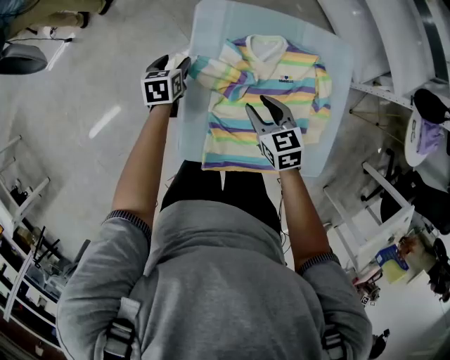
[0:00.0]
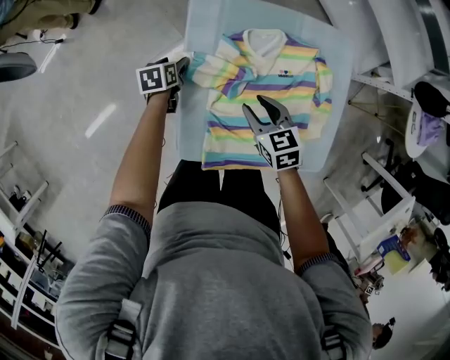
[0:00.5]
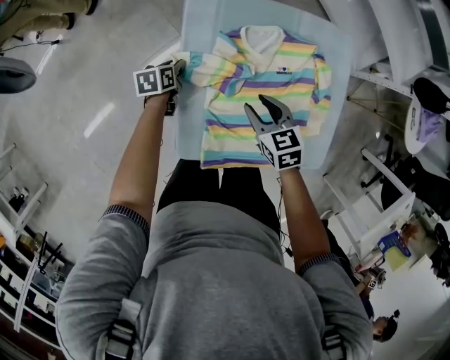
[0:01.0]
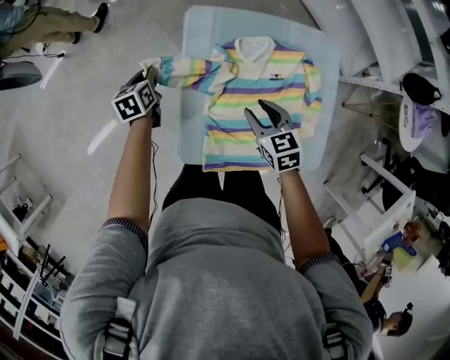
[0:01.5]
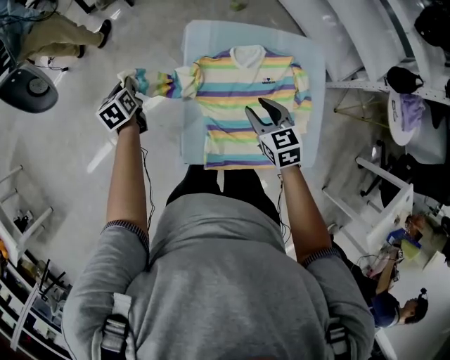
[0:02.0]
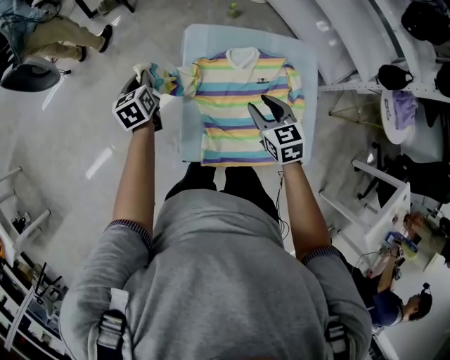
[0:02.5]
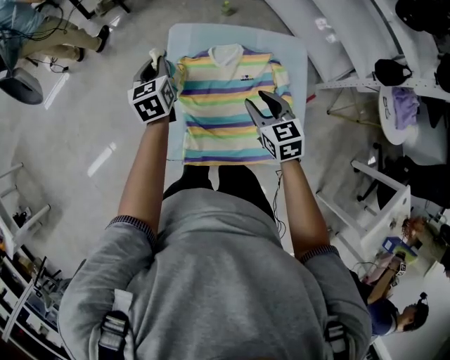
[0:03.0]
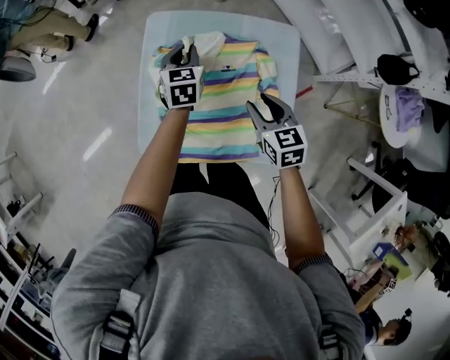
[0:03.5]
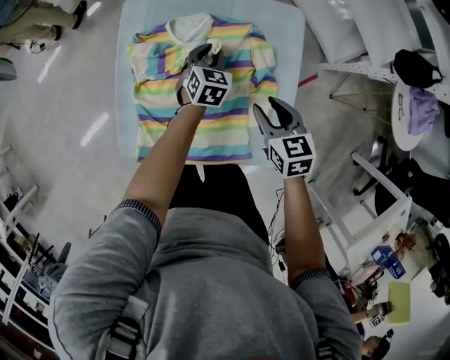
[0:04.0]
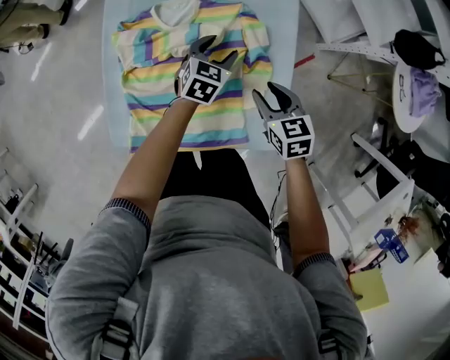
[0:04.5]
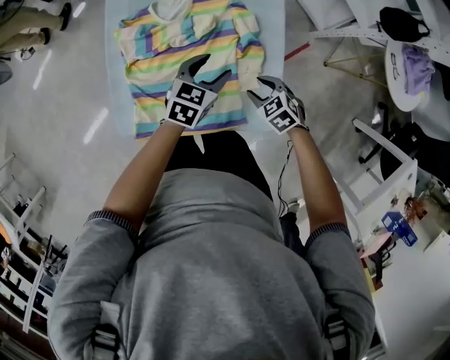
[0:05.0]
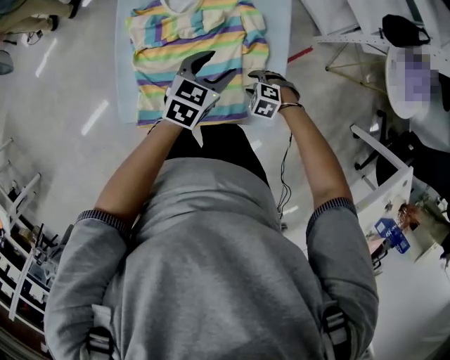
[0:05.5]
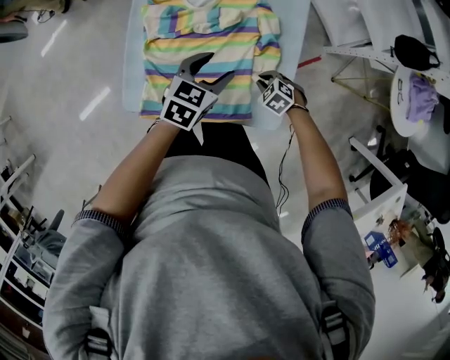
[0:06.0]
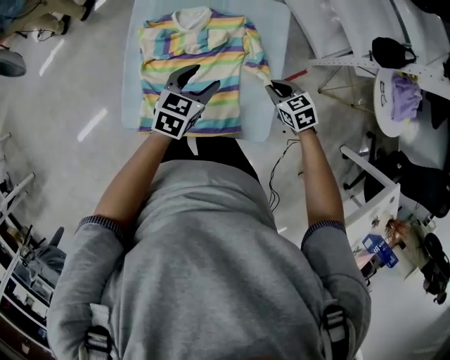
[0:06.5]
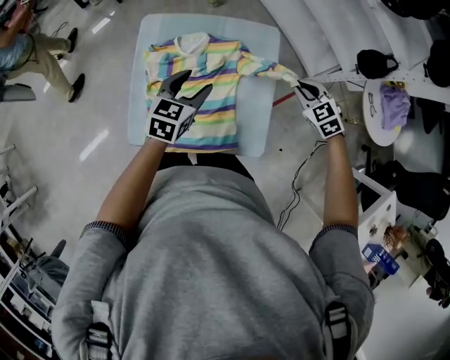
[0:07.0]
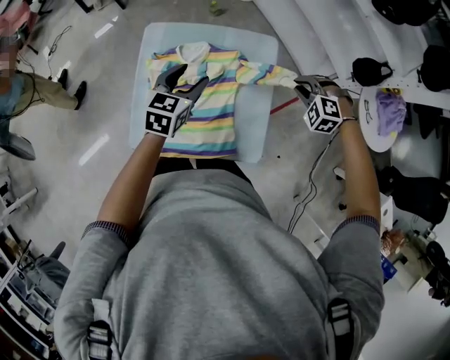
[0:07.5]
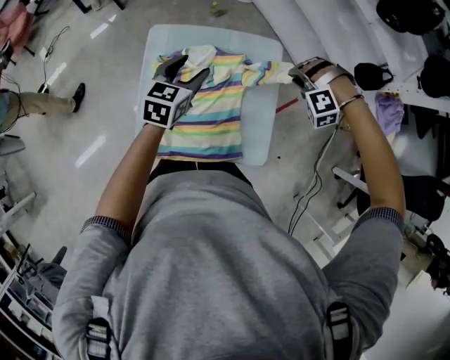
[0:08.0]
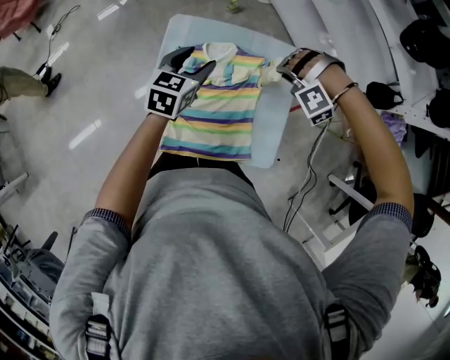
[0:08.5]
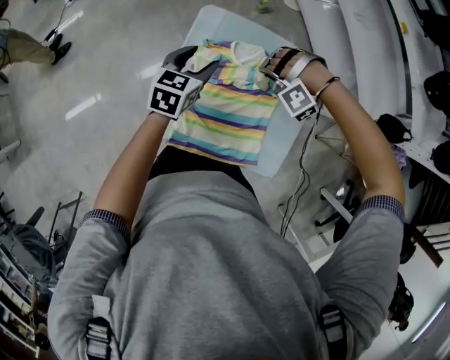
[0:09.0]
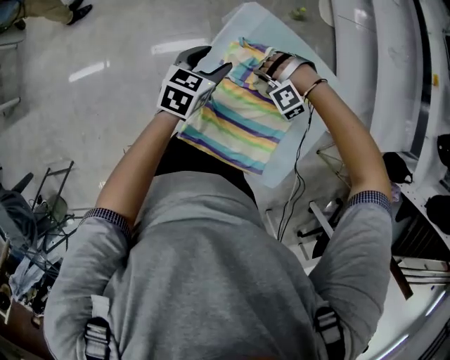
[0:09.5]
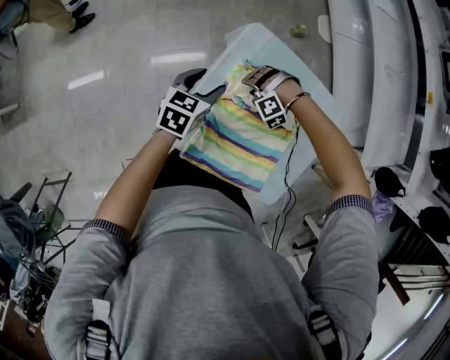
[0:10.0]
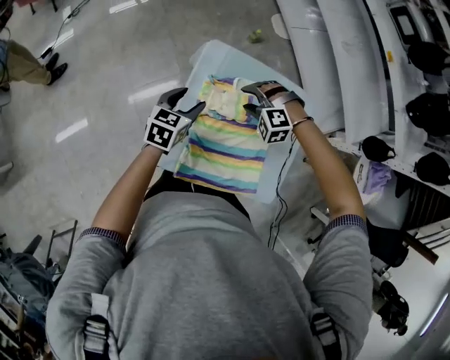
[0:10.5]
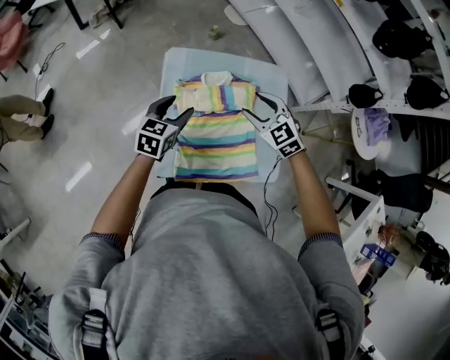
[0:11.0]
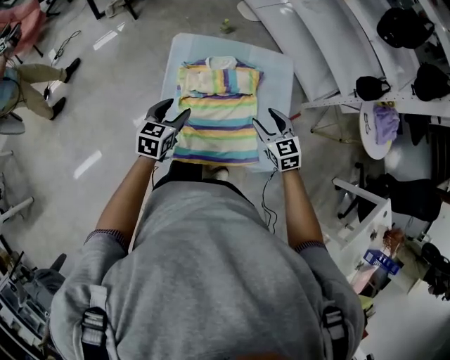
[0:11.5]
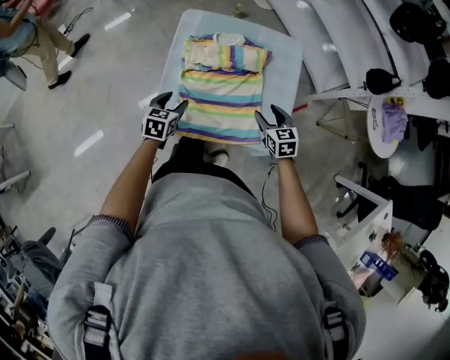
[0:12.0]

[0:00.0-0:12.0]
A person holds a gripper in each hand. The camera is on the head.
0:00.0 to 0:02.0: The right gripper travels upward by approximately 10 cm; the left gripper travels to the left and upward by approximately 20 cm, turns by roughly 20 degrees, and closes up.
0:02.0 to 0:04.0: The left gripper travels to the right by roughly 50 cm, and swivels some 40 degrees, while the right gripper shifts about 25 cm to the right.
0:04.0 to 0:06.0: The right gripper goes approximately 15 cm downward, changes its angle by some 50 degrees, and closes up; the left gripper moves about 20 cm, changes its angle by approximately 20 degrees, and opens up.
0:06.0 to 0:08.0: The right gripper is displaced upward and forward by roughly 35 cm, and rolls counterclockwise, seen from behind, by roughly 60 degrees, while the left gripper goes some 20 cm upward, forward and to the left.
0:08.0 to 0:10.0: The left gripper shifts by approximately 30 cm, and turns by about 20 degrees. The right gripper ends up roughly 50 cm from where it was, changes its angle by roughly 30 degrees, and opens.
0:10.0 to 0:12.0: The left gripper ends up about 20 cm from where it was, while the right gripper changes place by some 35 cm, and rotates around the line of its fingers by some 120 degrees, clockwise from behind.

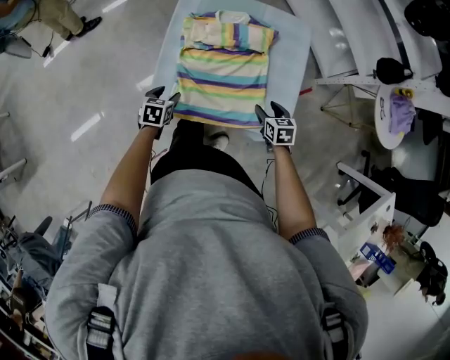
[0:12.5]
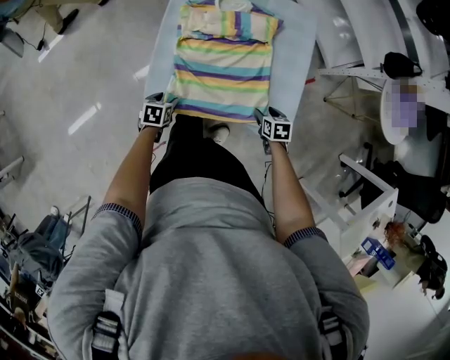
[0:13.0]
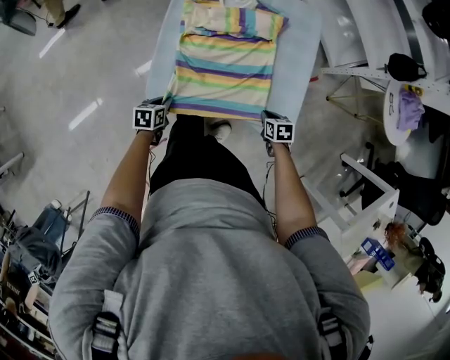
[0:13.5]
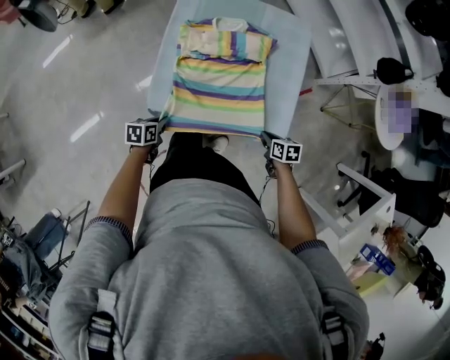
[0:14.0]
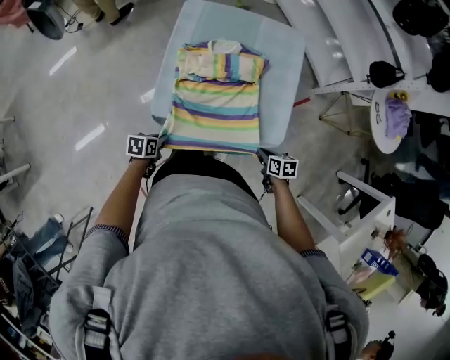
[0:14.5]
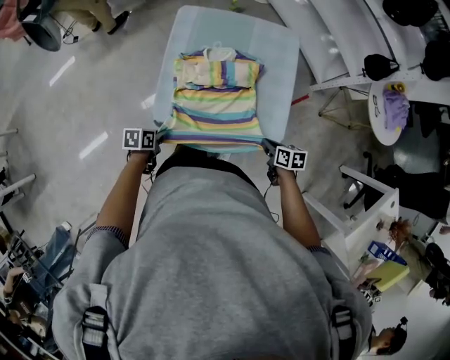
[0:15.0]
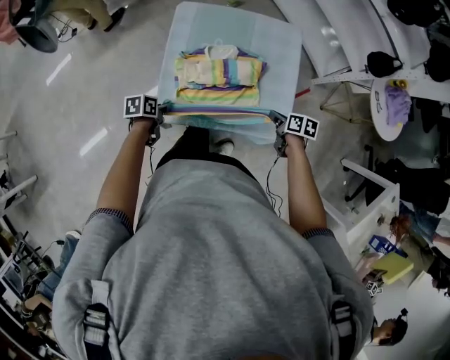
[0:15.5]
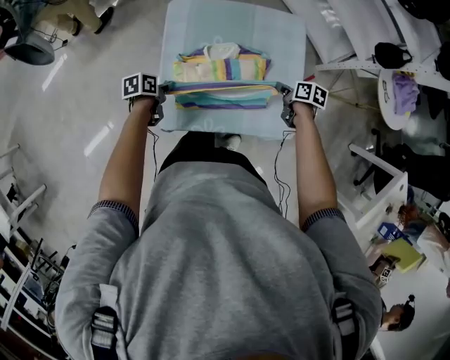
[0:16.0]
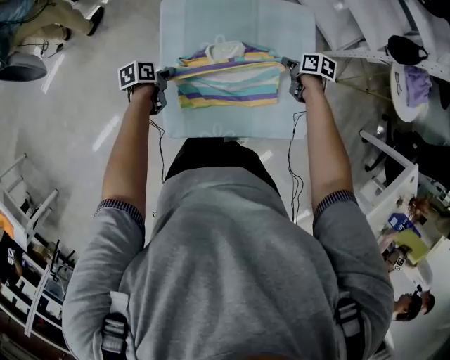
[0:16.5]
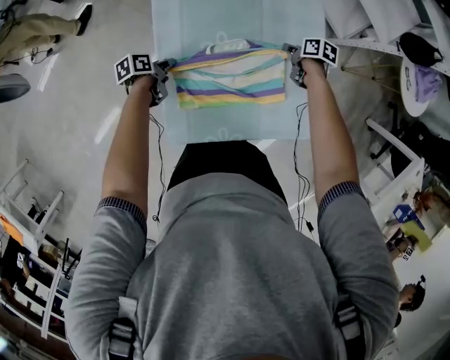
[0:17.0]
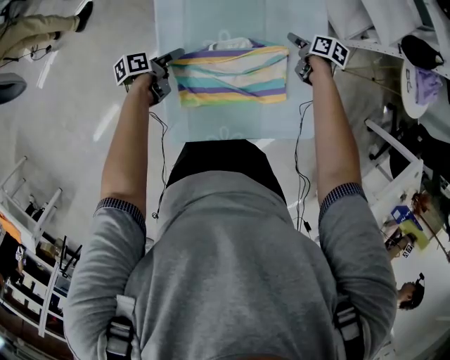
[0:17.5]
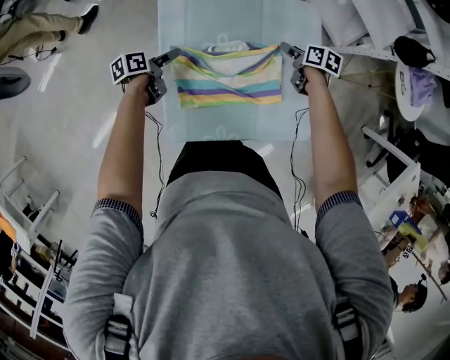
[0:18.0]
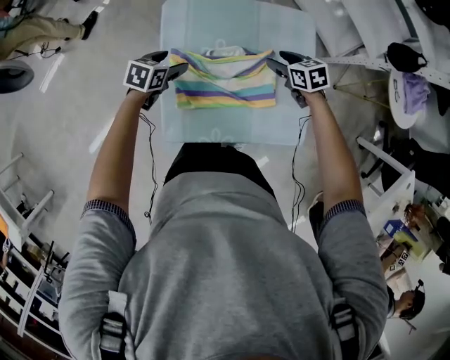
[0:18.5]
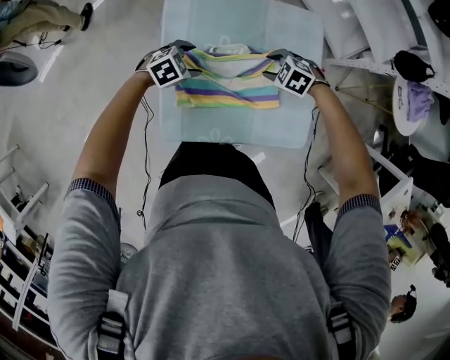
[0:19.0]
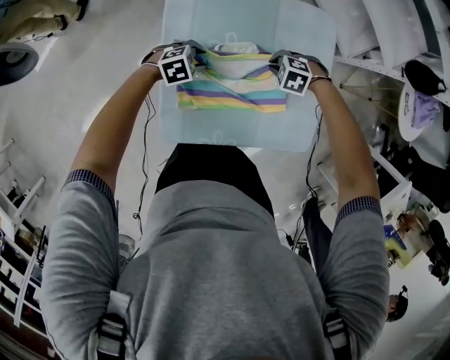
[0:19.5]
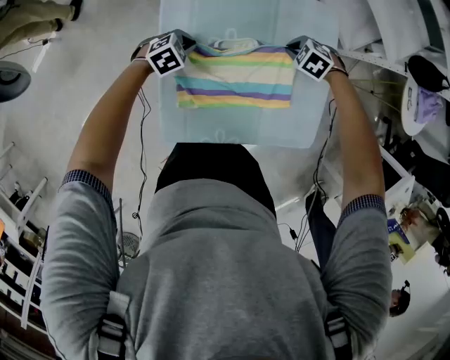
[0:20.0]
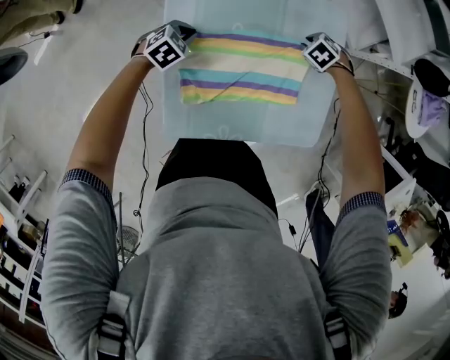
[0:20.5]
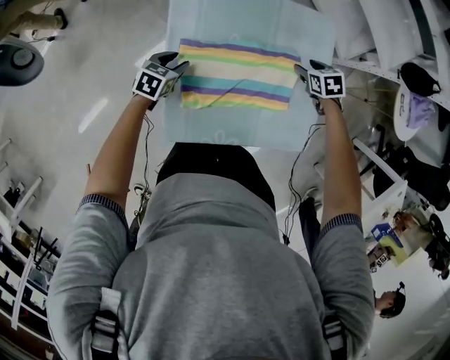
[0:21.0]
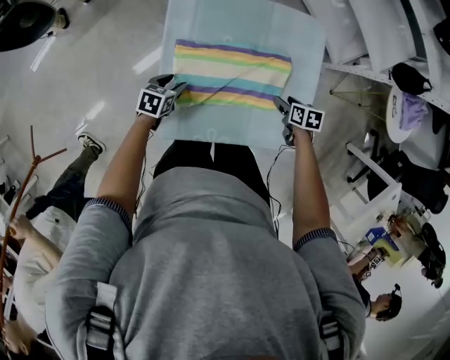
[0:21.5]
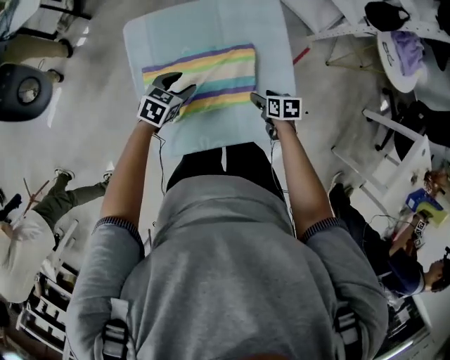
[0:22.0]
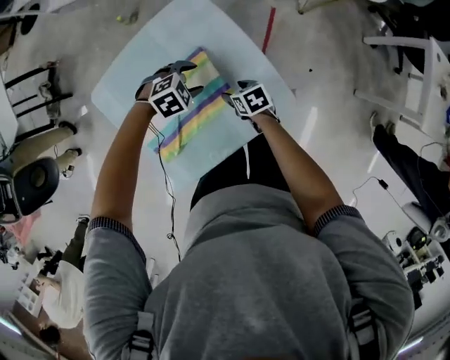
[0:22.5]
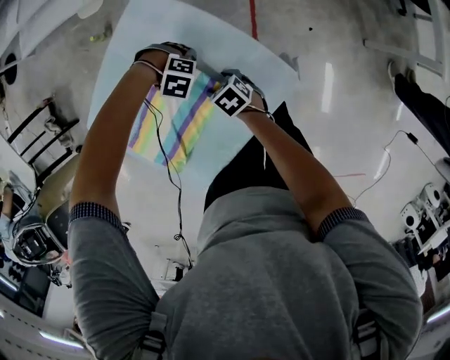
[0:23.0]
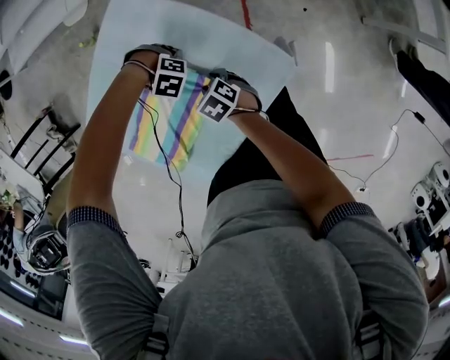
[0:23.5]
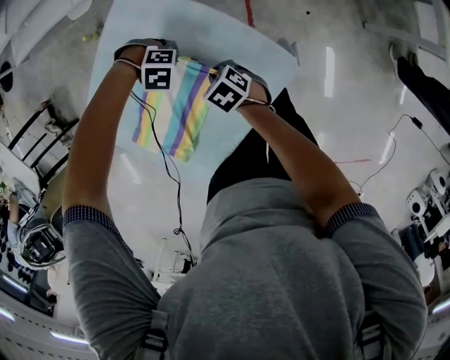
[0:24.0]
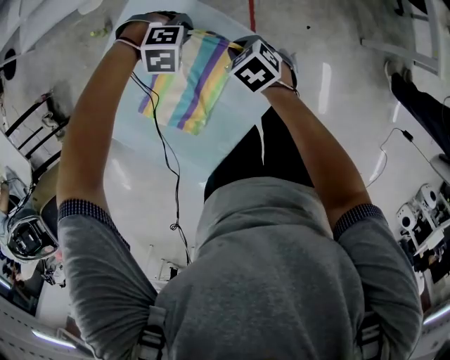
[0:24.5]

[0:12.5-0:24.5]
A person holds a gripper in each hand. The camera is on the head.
0:12.5 to 0:14.5: The grippers both shift backward by roughly 15 cm. The left gripper changes its angle by approximately 20 degrees, and closes up, while the right gripper rotates roughly 30 degrees, and closes its fingers.
0:14.5 to 0:16.5: Both grippers travel together forward, about 35 cm. The right gripper turns by roughly 20 degrees.
0:16.5 to 0:18.5: The right gripper travels to the left by roughly 5 cm, turns by roughly 40 degrees, and opens. The left gripper moves upward, about 5 cm, twists approximately 40 degrees clockwise, seen from behind, and opens.
0:18.5 to 0:20.5: Both grippers travel together downward, approximately 10 cm. The left gripper turns by roughly 40 degrees, and closes, while the right gripper tilts its fingers about 30 degrees downward, and closes its fingers.
0:20.5 to 0:22.5: The right gripper moves some 20 cm, twists roughly 70 degrees clockwise, seen from behind, and opens up; the left gripper changes place by about 35 cm, twists some 40 degrees clockwise, seen from behind, and opens up.
0:22.5 to 0:24.5: The left gripper moves roughly 15 cm downward and comes back, rolls clockwise, seen from behind, by approximately 50 degrees, and closes. The right gripper ends up some 10 cm from where it was, and closes its fingers.

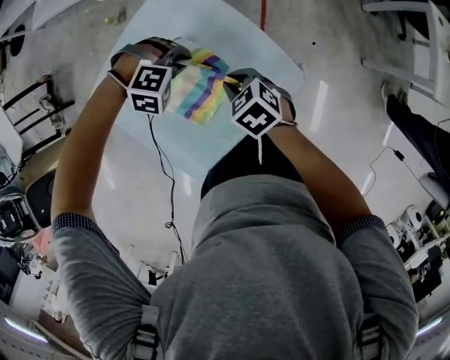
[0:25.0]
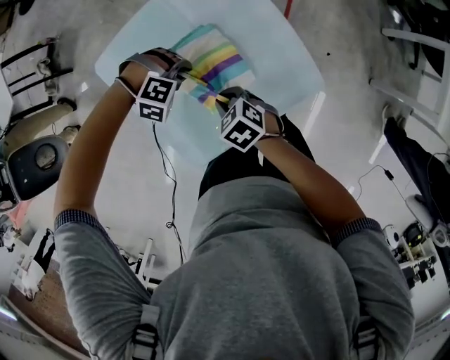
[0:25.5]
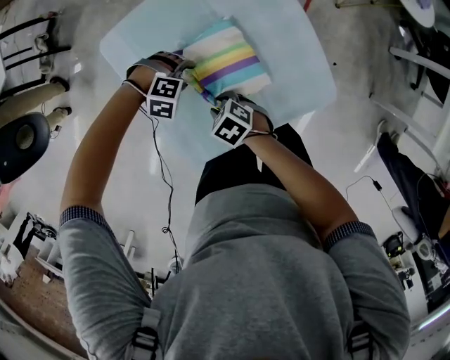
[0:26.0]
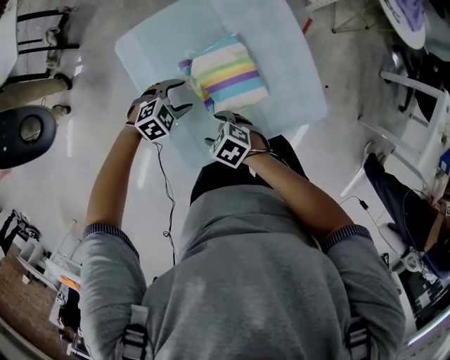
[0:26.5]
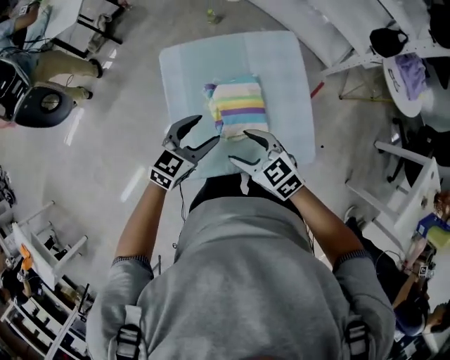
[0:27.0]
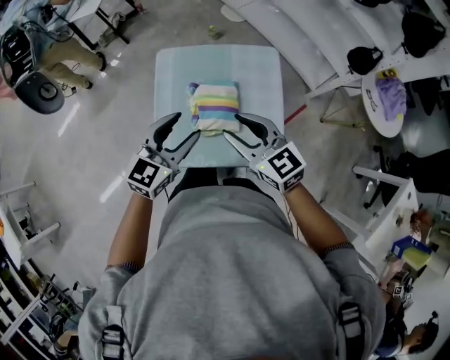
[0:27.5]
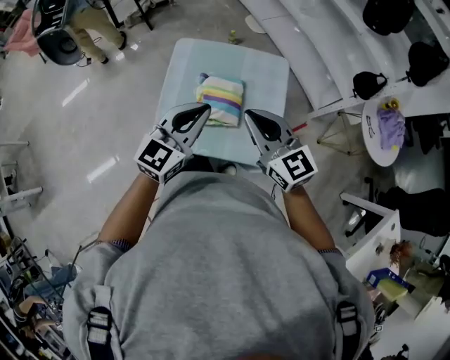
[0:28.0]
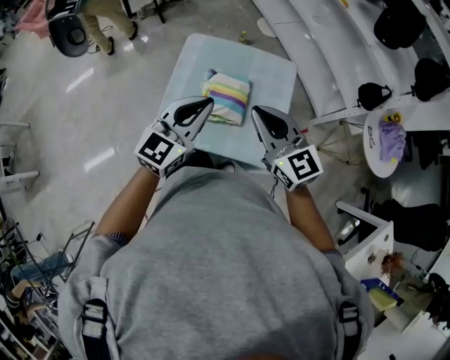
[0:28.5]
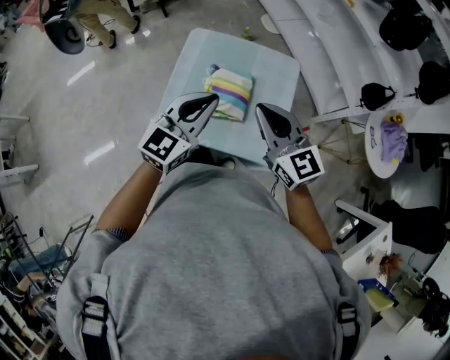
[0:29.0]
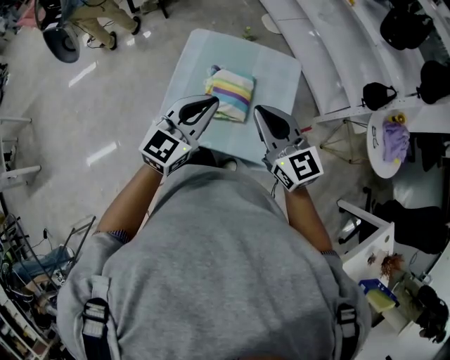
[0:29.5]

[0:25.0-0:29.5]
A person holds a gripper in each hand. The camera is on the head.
0:25.0 to 0:27.0: The left gripper moves some 25 cm, twists approximately 90 degrees counterclockwise, seen from behind, and opens its fingers. Meanwhile the right gripper moves approximately 20 cm, swivels approximately 40 degrees, and opens.
0:27.0 to 0:29.5: The left gripper travels upward and backward by approximately 20 cm, swivels about 30 degrees, and closes up. Meanwhile the right gripper is displaced upward and to the right by some 20 cm, rotates approximately 30 degrees, and closes up.
